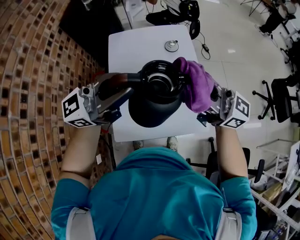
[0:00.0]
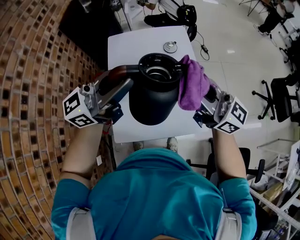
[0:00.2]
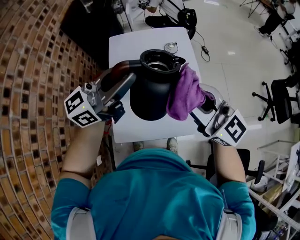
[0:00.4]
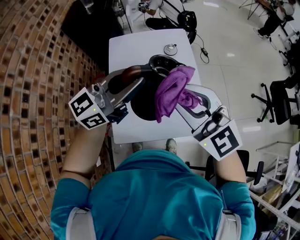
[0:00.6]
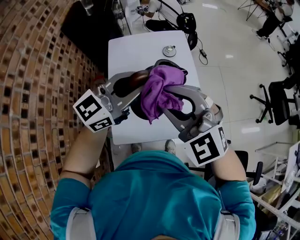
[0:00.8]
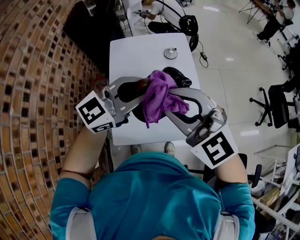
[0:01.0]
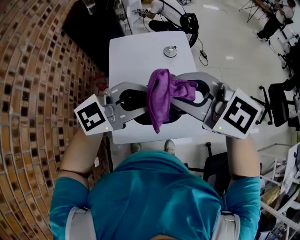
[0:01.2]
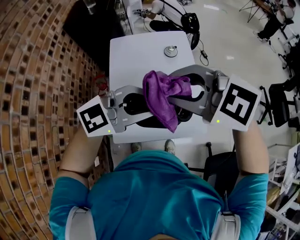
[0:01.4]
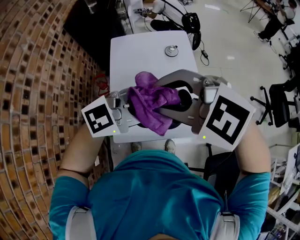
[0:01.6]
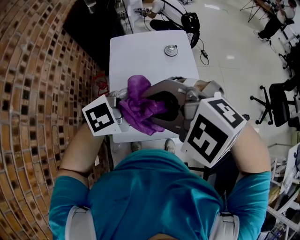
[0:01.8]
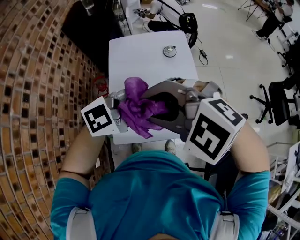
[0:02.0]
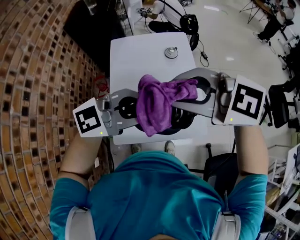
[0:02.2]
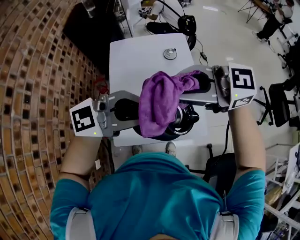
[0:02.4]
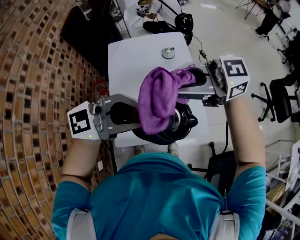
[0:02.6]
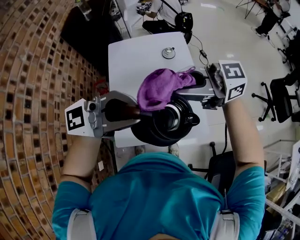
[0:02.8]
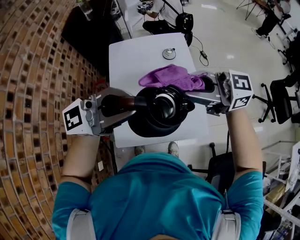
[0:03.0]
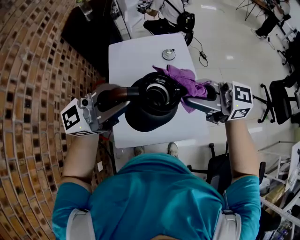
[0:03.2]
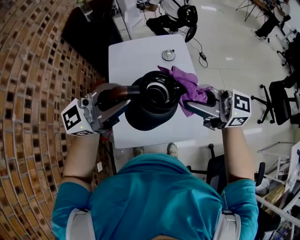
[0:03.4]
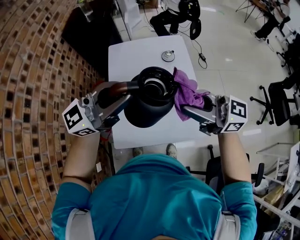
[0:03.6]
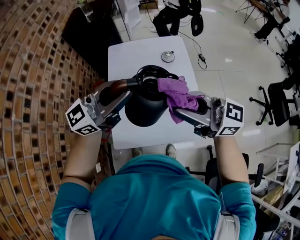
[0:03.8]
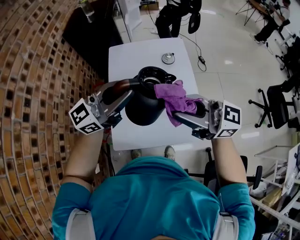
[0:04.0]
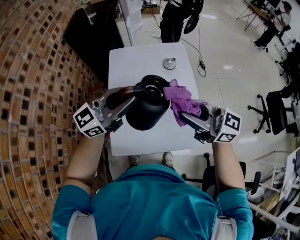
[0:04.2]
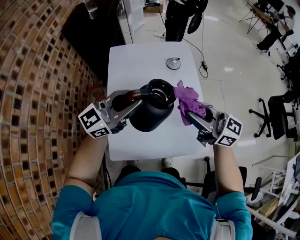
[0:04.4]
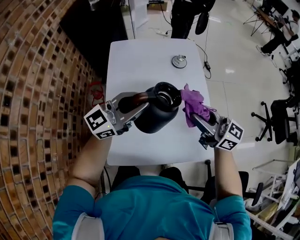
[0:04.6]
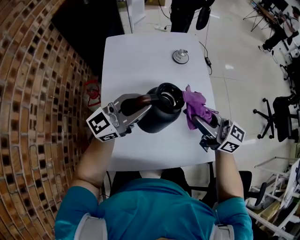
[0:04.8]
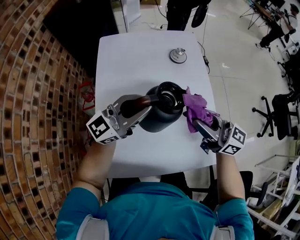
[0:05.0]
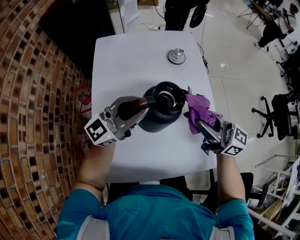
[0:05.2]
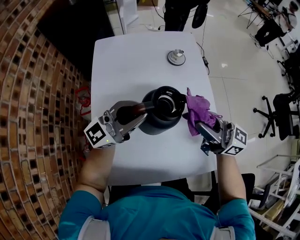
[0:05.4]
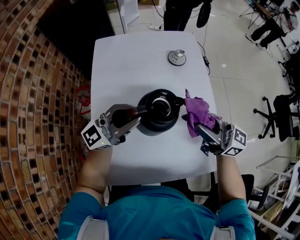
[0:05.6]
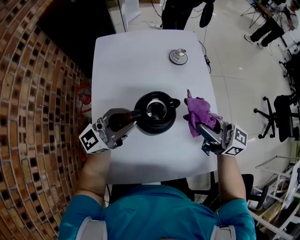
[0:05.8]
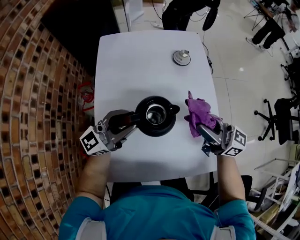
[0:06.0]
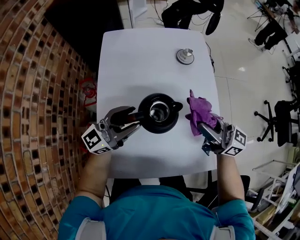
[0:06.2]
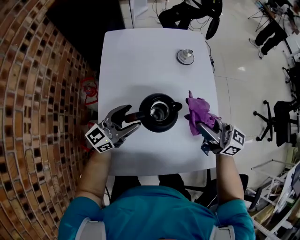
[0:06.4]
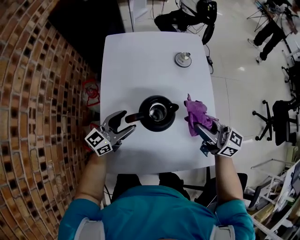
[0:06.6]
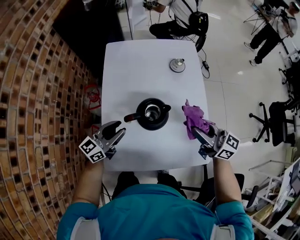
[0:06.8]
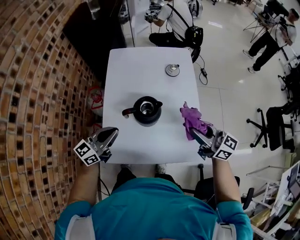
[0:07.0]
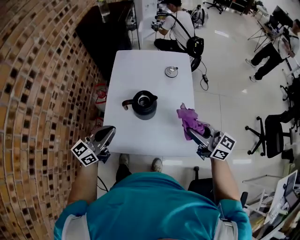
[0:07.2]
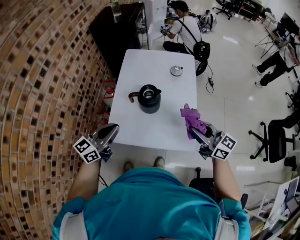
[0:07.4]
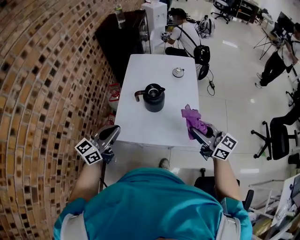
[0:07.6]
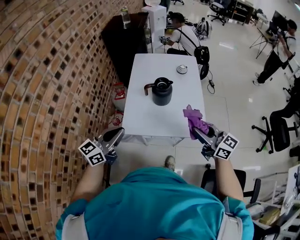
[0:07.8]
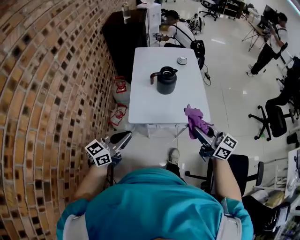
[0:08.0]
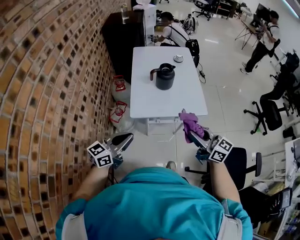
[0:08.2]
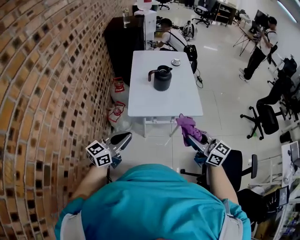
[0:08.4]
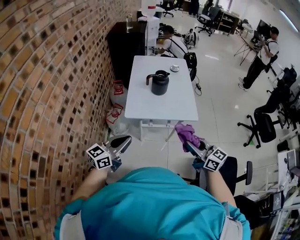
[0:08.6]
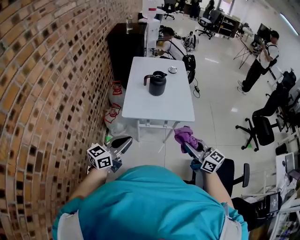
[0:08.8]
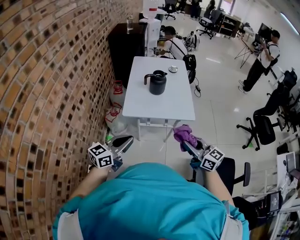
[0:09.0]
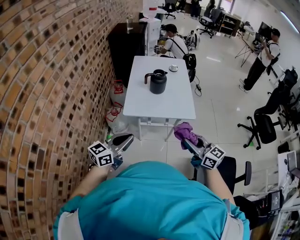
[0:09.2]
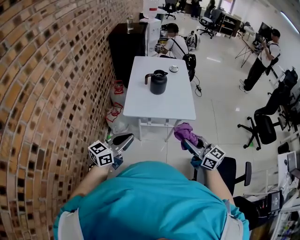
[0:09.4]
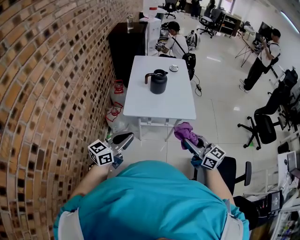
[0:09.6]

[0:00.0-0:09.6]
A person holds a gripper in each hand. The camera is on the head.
0.0 to 1.6 s: The right gripper shifts by approximately 15 cm, and tips its fingers downward by roughly 50 degrees, while the left gripper shifts by some 10 cm, and points its fingers some 30 degrees further downward.
1.6 to 3.2 s: The right gripper ends up some 10 cm from where it was, and points its fingers about 40 degrees further upward. Meanwhile the left gripper shifts by roughly 10 cm, and changes its angle by some 30 degrees.
3.2 to 4.8 s: The grippers both shift downward by some 25 cm. The right gripper changes its angle by approximately 20 degrees.
4.8 to 6.4 s: The left gripper shifts roughly 10 cm downward, and opens.
6.4 to 8.0 s: The two grippers go roughly 40 cm backward and upward. The left gripper closes.
8.0 to 9.6 s: The left gripper heads backward and to the right, covering about 15 cm. Meanwhile the right gripper goes some 15 cm backward.

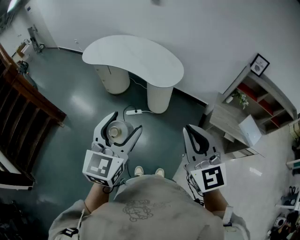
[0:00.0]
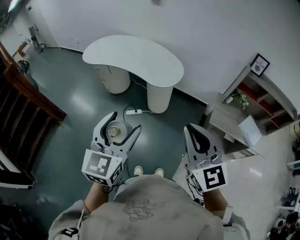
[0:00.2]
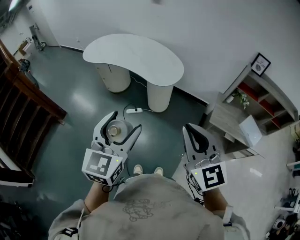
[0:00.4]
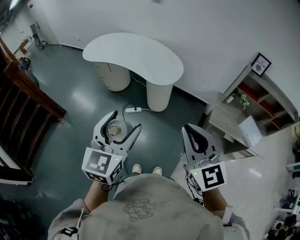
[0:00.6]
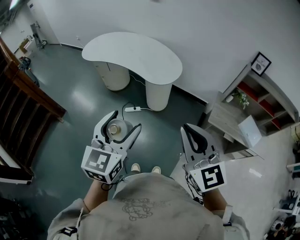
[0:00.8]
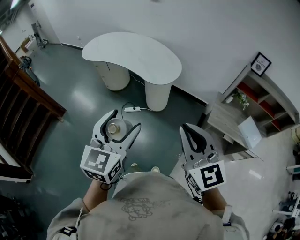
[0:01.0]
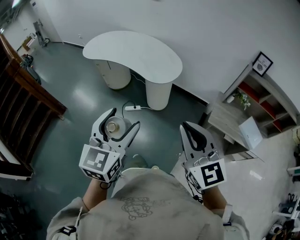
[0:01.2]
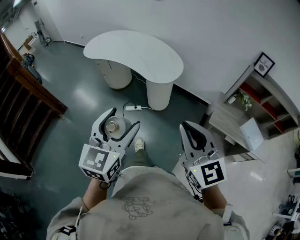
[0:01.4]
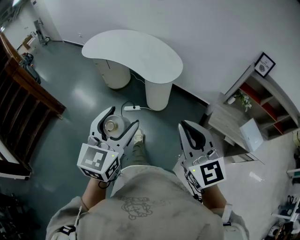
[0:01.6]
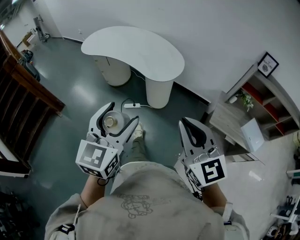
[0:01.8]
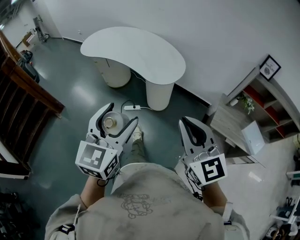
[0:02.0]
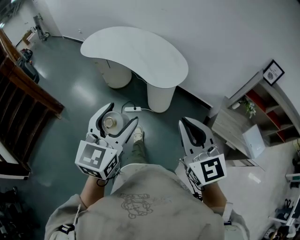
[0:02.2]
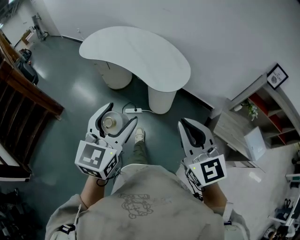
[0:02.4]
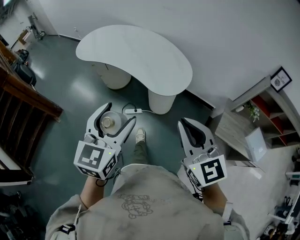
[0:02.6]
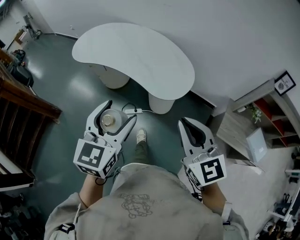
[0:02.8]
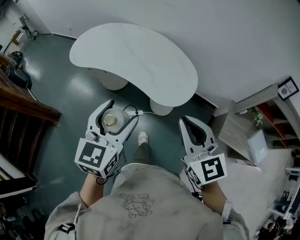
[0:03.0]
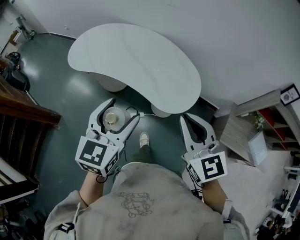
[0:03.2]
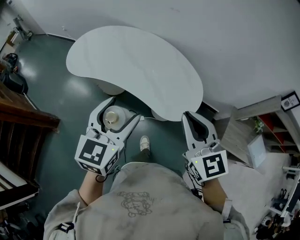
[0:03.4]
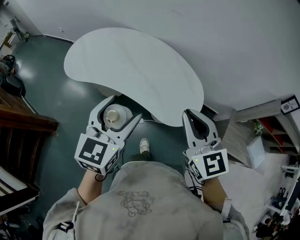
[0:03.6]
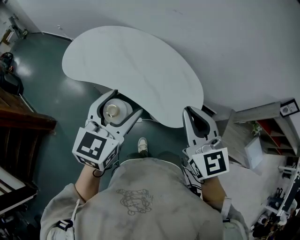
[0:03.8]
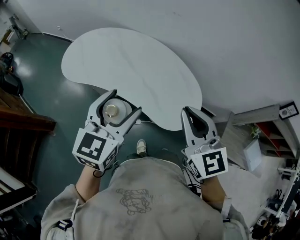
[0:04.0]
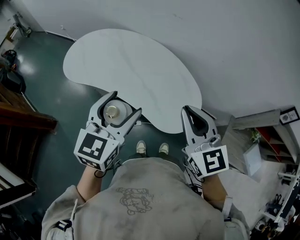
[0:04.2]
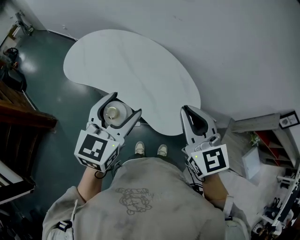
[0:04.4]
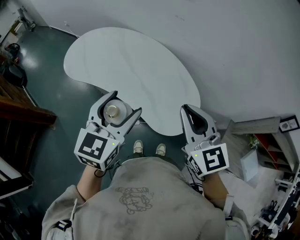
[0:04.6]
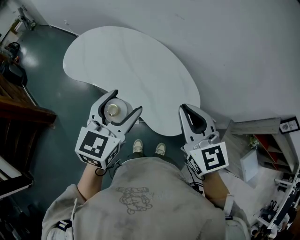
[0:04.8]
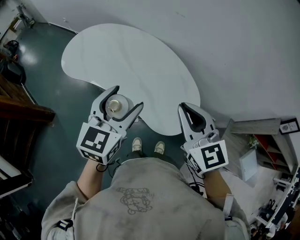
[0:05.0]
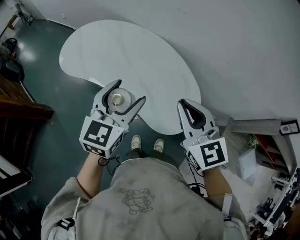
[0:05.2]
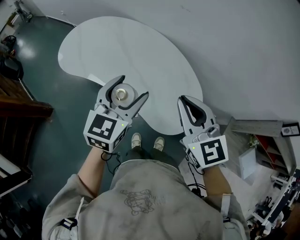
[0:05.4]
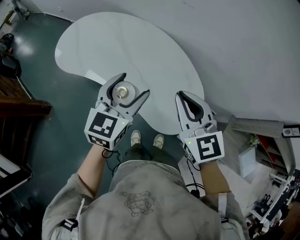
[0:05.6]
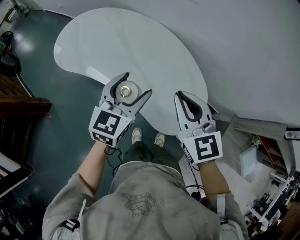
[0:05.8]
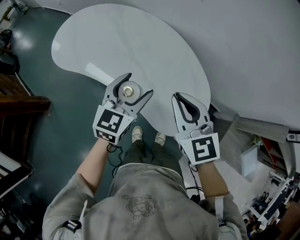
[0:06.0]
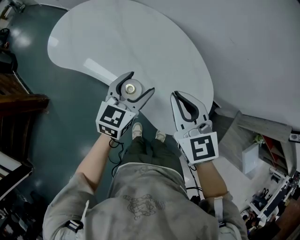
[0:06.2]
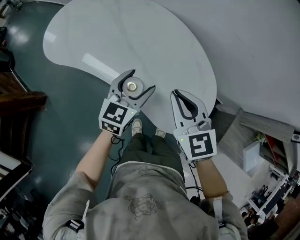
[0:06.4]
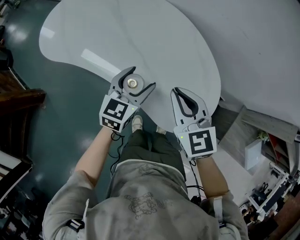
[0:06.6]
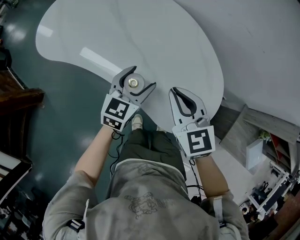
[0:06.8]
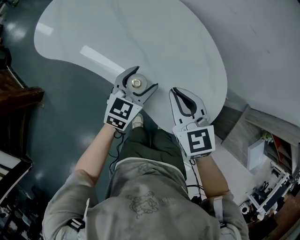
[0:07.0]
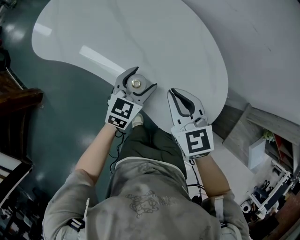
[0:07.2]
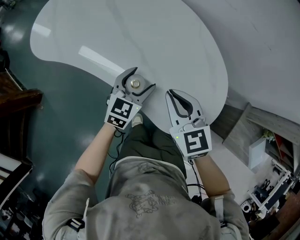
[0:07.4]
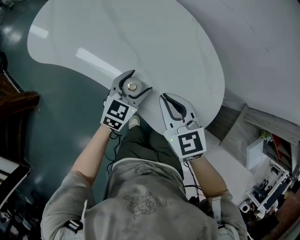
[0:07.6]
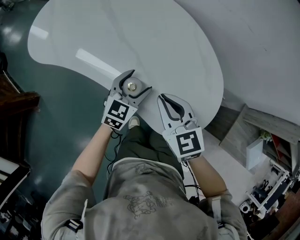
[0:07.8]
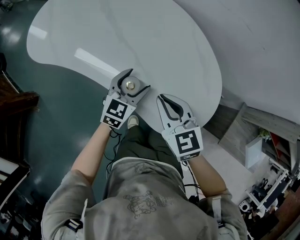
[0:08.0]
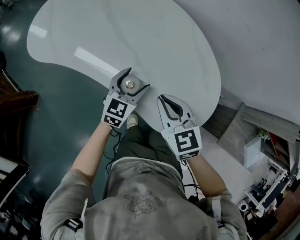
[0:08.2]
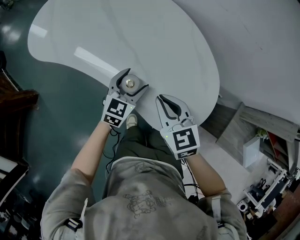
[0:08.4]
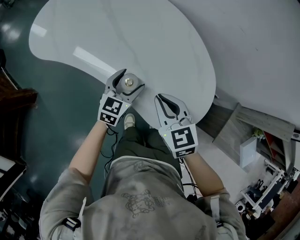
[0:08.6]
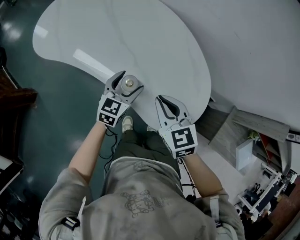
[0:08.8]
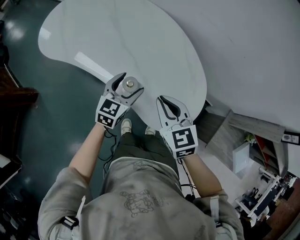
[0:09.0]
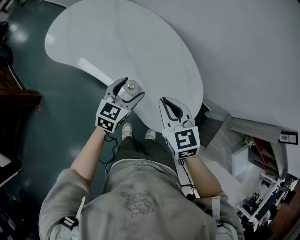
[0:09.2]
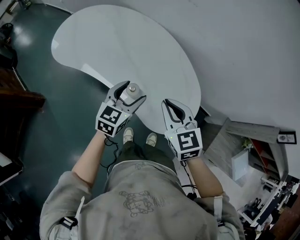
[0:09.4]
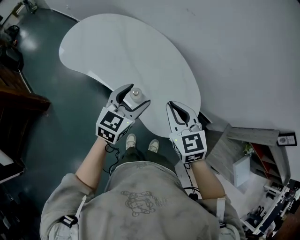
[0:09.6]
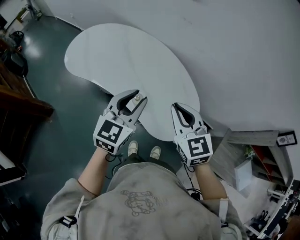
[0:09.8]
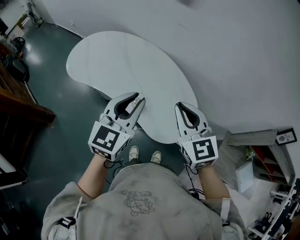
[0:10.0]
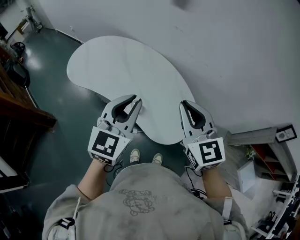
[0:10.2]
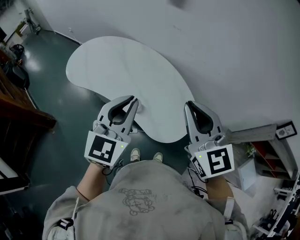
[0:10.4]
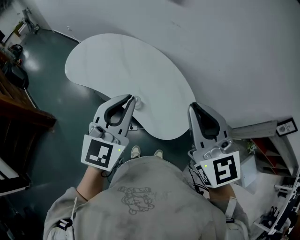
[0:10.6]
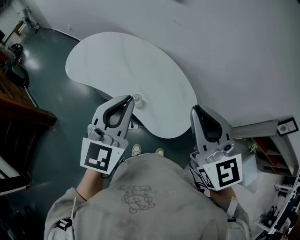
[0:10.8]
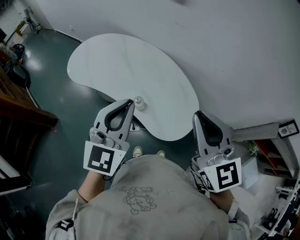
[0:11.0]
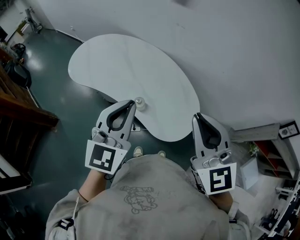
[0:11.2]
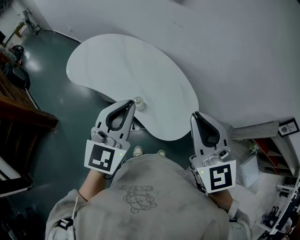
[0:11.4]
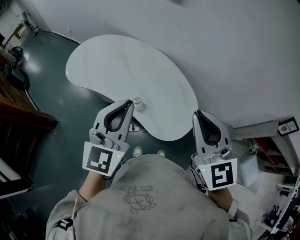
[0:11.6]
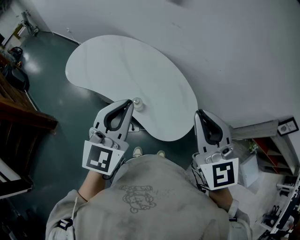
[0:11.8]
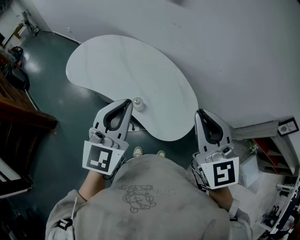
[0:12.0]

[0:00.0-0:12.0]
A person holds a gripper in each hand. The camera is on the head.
0.0 to 1.6 s: The grippers both shift to the right by roughly 5 cm.
1.6 to 3.0 s: The two grippers go approximately 30 cm forward.
3.0 to 4.4 s: Both grippers travel together forward, roughly 20 cm.
4.4 to 6.0 s: The left gripper moves downward and forward, approximately 20 cm; the right gripper moves forward and downward, some 15 cm.
6.0 to 7.6 s: The two grippers go about 20 cm downward.
7.6 to 9.0 s: Both grippers travel together upward, approximately 5 cm.
9.0 to 10.4 s: Both grippers move upward, approximately 30 cm. The left gripper rotates some 20 degrees, and closes up. The right gripper turns by approximately 30 degrees.
10.4 to 12.0 s: The grippers move only a little.

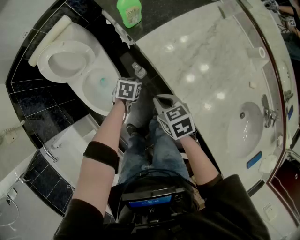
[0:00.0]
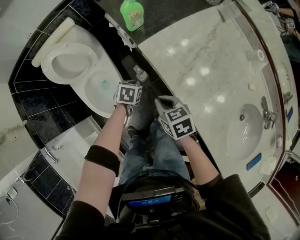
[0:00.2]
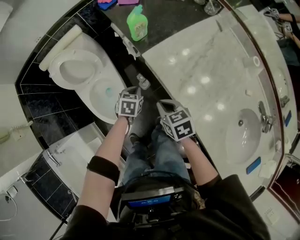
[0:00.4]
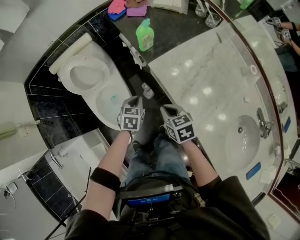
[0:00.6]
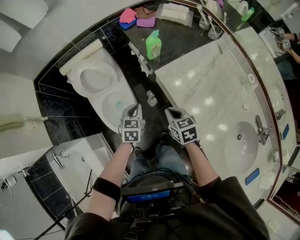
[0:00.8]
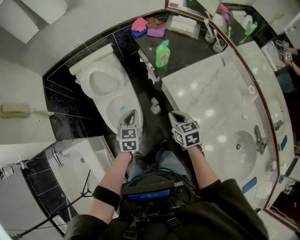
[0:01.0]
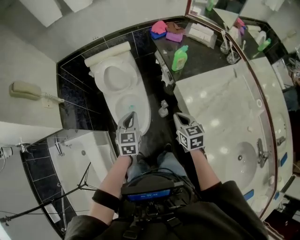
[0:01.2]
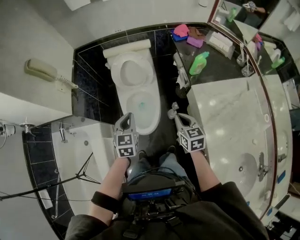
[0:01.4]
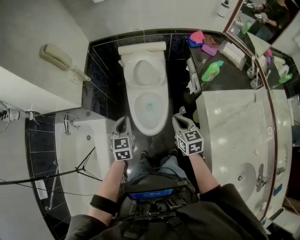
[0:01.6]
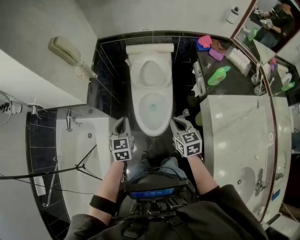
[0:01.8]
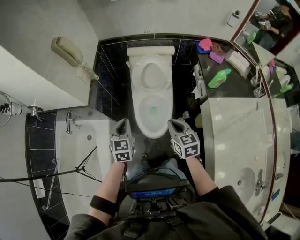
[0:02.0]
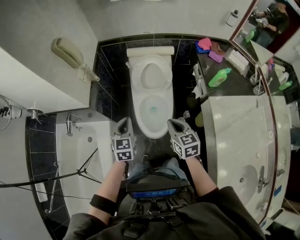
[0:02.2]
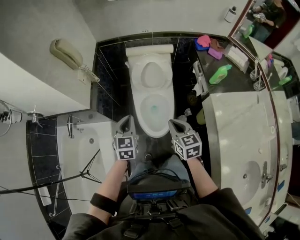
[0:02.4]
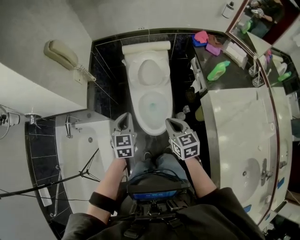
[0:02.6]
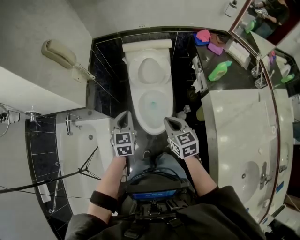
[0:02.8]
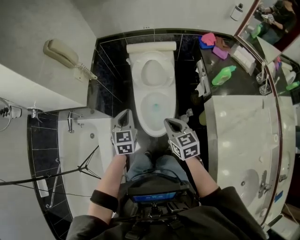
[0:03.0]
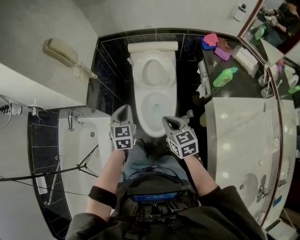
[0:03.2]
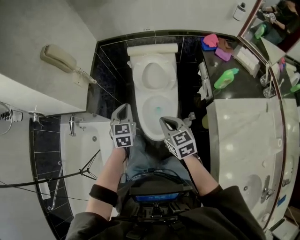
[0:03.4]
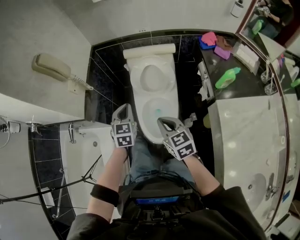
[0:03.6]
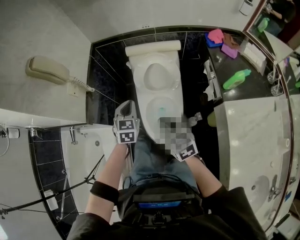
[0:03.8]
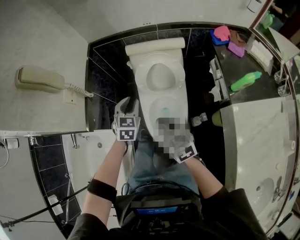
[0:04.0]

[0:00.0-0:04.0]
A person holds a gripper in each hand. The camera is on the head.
0.0 to 1.4 s: The left gripper goes roughly 30 cm upward, and angles its fingers upward, by some 40 degrees. The right gripper moves upward, approximately 15 cm, and swivels some 20 degrees.
1.4 to 2.6 s: The two grippers go roughly 15 cm to the left.
2.6 to 4.0 s: The two grippers go approximately 20 cm forward and downward. The left gripper opens up.
